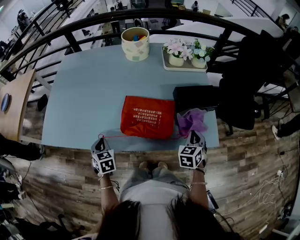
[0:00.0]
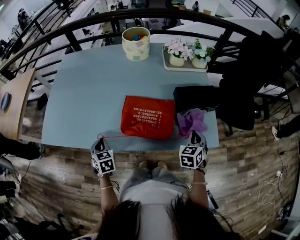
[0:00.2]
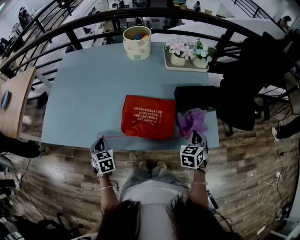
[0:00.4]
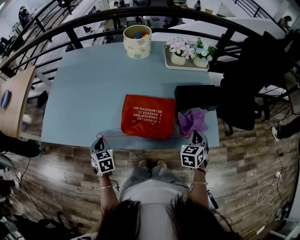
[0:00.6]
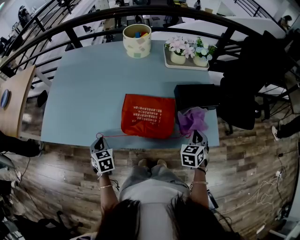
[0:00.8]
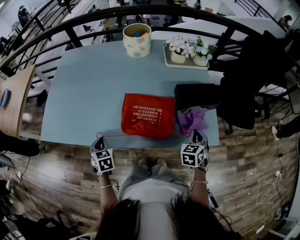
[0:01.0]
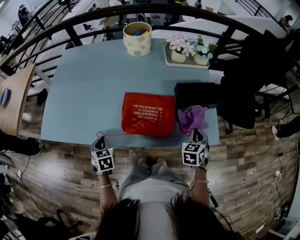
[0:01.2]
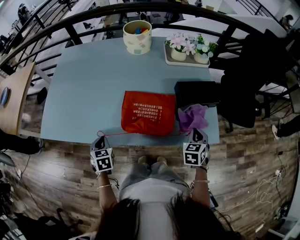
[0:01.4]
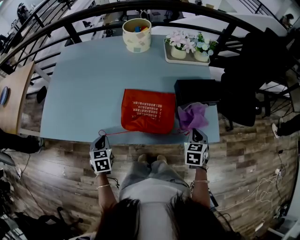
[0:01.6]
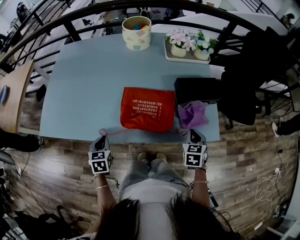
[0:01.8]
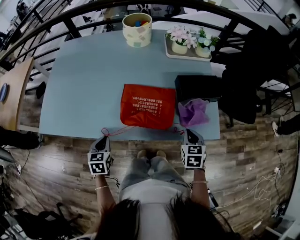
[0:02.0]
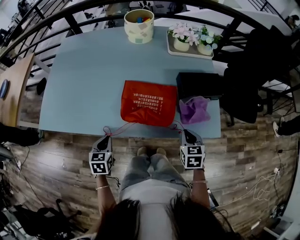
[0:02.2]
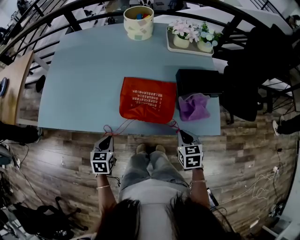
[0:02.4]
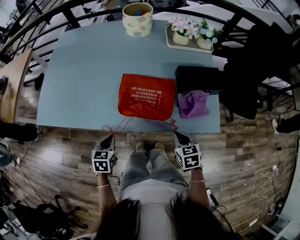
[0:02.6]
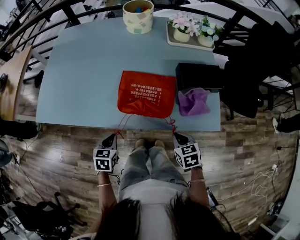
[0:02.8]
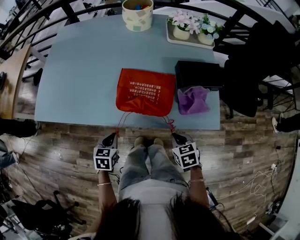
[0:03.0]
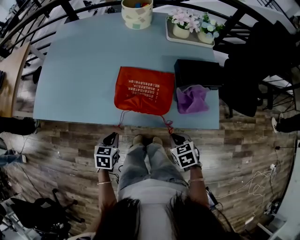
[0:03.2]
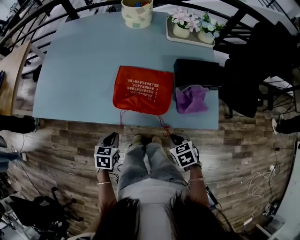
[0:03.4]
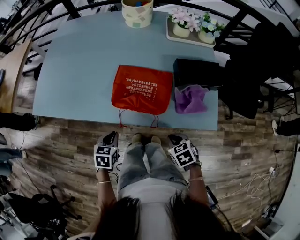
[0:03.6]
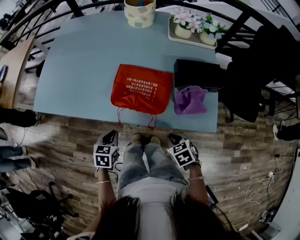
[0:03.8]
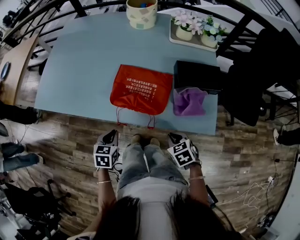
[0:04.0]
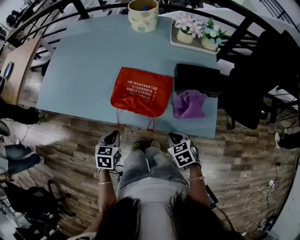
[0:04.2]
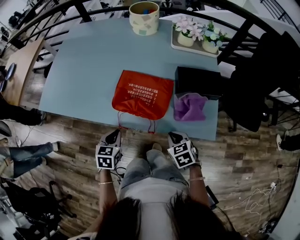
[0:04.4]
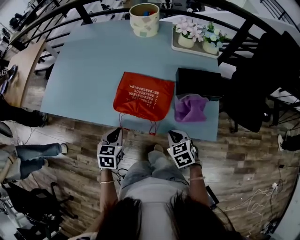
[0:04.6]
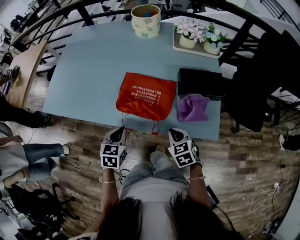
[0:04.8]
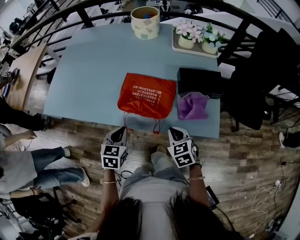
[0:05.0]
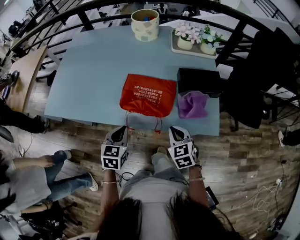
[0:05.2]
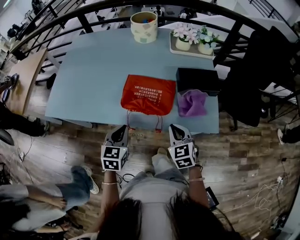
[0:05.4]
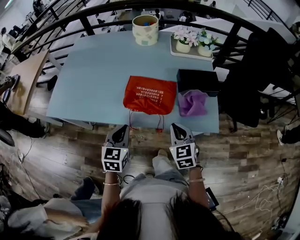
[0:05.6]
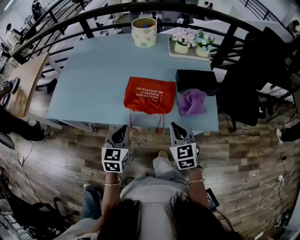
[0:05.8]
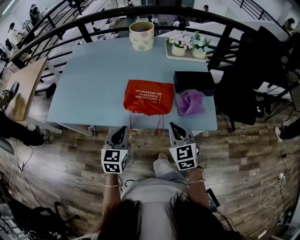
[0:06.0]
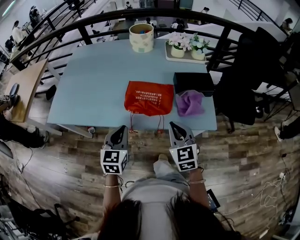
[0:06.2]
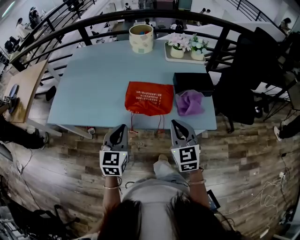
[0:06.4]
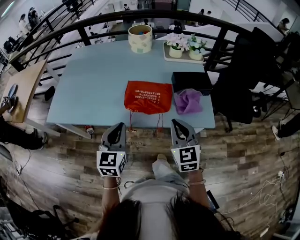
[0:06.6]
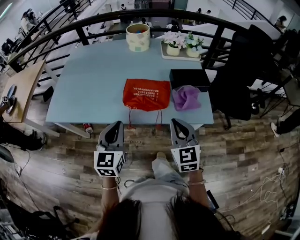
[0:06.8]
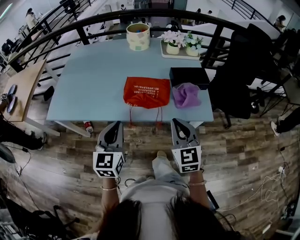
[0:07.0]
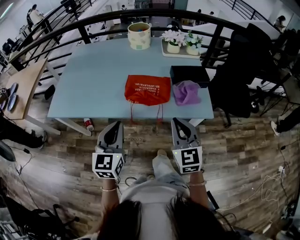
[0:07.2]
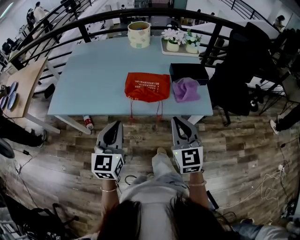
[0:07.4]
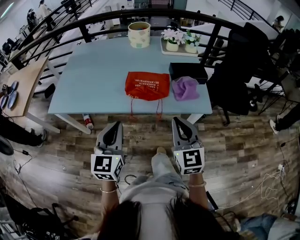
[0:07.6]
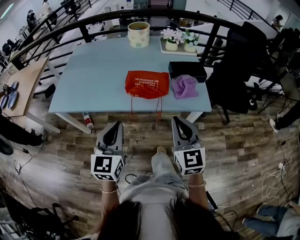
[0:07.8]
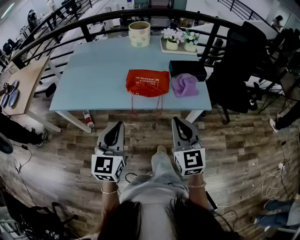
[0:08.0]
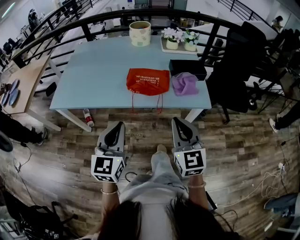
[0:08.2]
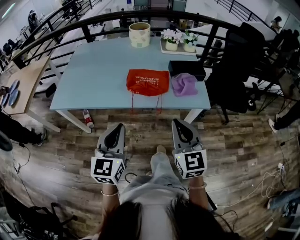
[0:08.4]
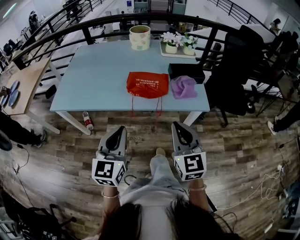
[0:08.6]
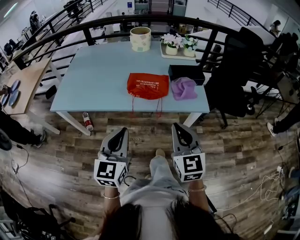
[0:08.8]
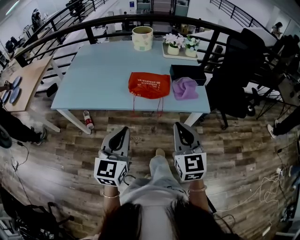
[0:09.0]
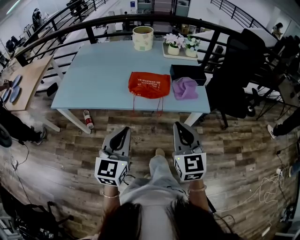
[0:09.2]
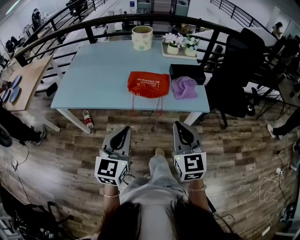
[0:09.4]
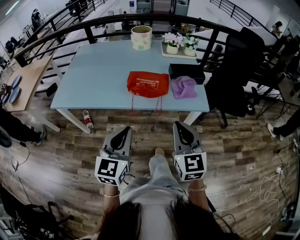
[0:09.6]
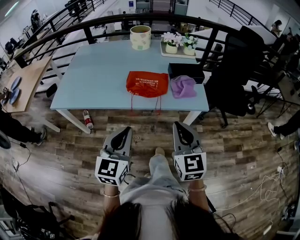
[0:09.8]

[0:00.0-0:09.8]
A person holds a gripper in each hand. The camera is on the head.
0:00.0 to 0:01.4: The grippers move only a little.
0:01.4 to 0:02.8: The left gripper travels to the right and backward by about 10 cm, while the right gripper shifts about 15 cm to the left, backward and downward, and rotates about 30 degrees.
0:02.8 to 0:04.2: The left gripper is displaced to the right by some 5 cm.
0:04.2 to 0:05.6: The grippers both shift upward by approximately 10 cm. The left gripper turns by approximately 20 degrees. The right gripper changes its angle by about 30 degrees.
0:05.6 to 0:07.0: The two grippers go about 15 cm upward and backward.
0:07.0 to 0:08.4: The grippers both shift backward by roughly 10 cm.
0:08.4 to 0:09.8: There are only small adjustments of the grippers.

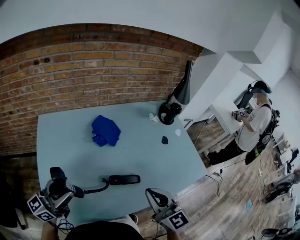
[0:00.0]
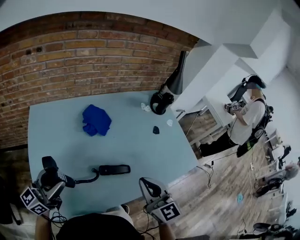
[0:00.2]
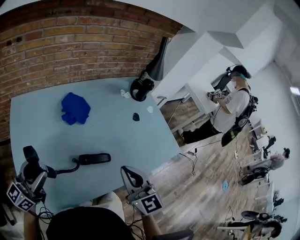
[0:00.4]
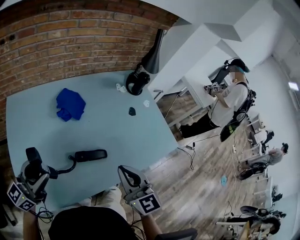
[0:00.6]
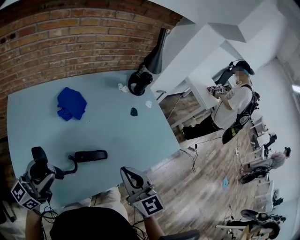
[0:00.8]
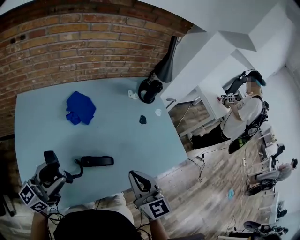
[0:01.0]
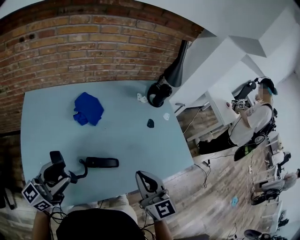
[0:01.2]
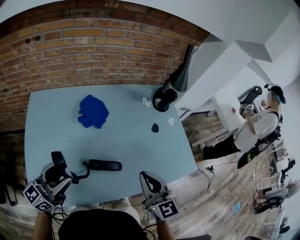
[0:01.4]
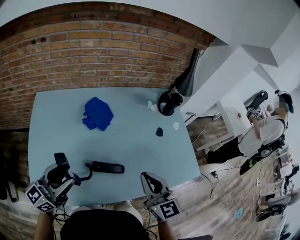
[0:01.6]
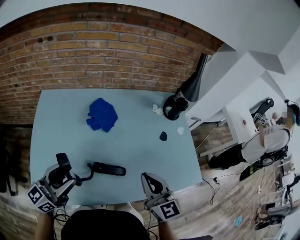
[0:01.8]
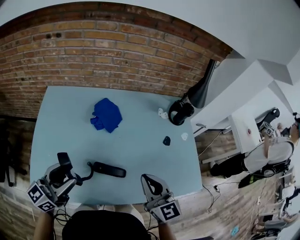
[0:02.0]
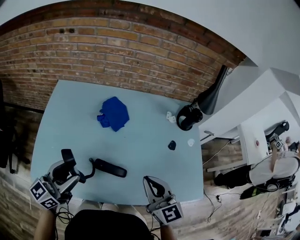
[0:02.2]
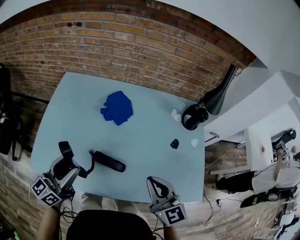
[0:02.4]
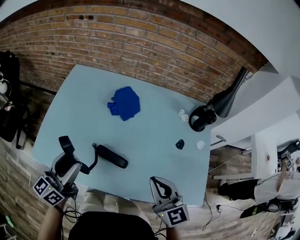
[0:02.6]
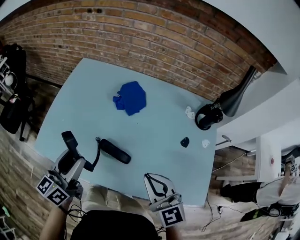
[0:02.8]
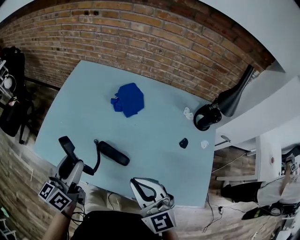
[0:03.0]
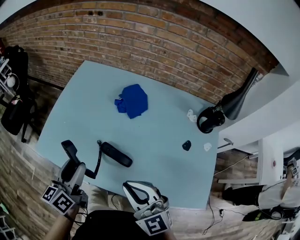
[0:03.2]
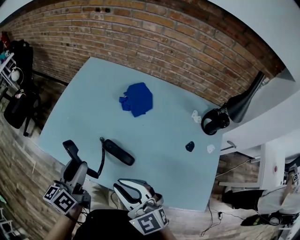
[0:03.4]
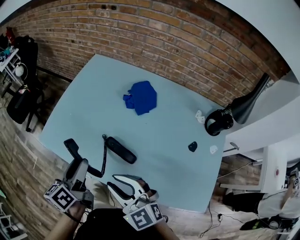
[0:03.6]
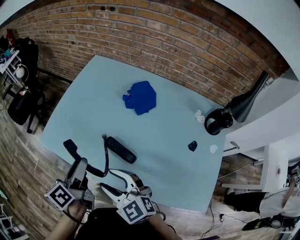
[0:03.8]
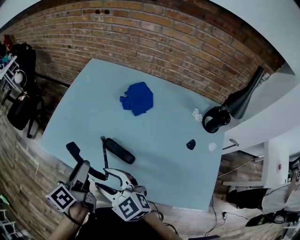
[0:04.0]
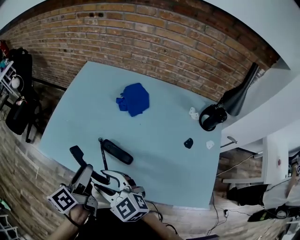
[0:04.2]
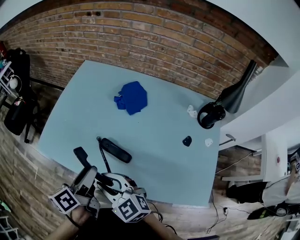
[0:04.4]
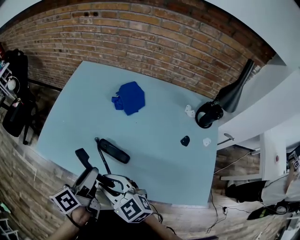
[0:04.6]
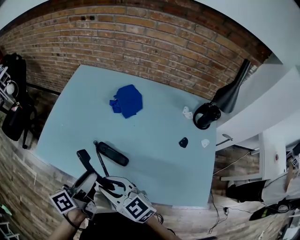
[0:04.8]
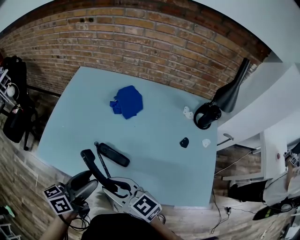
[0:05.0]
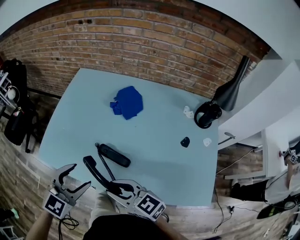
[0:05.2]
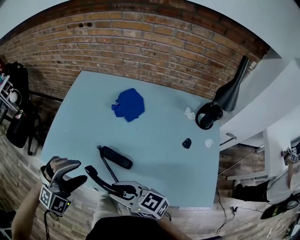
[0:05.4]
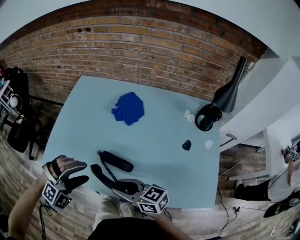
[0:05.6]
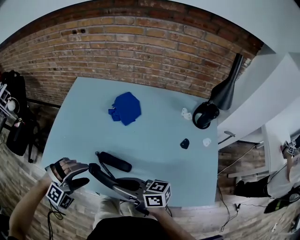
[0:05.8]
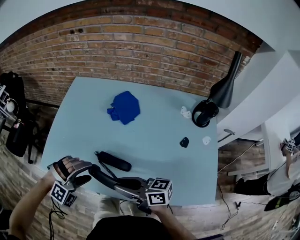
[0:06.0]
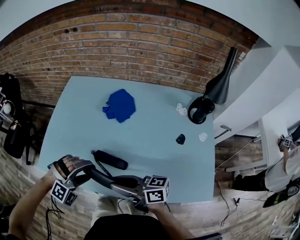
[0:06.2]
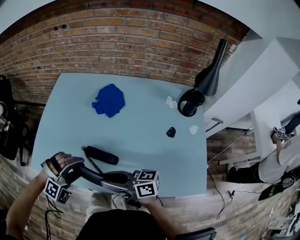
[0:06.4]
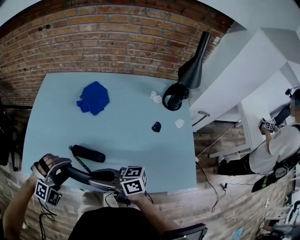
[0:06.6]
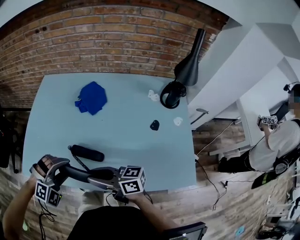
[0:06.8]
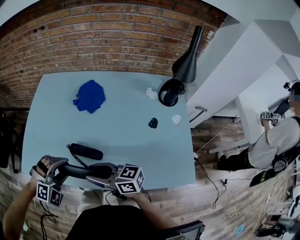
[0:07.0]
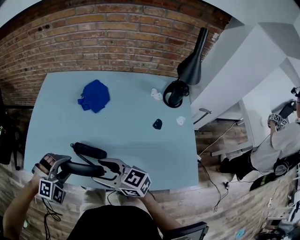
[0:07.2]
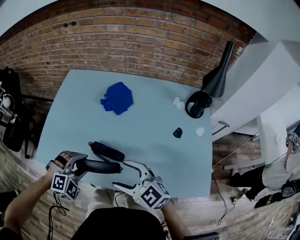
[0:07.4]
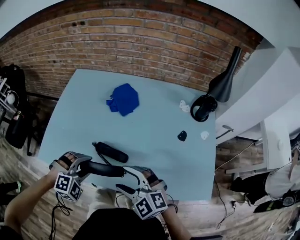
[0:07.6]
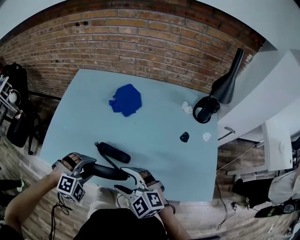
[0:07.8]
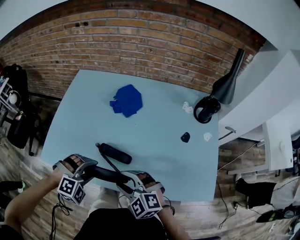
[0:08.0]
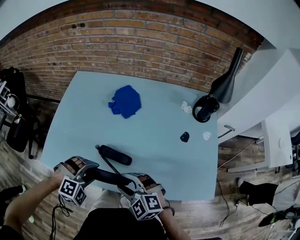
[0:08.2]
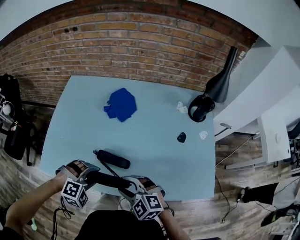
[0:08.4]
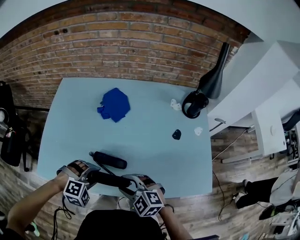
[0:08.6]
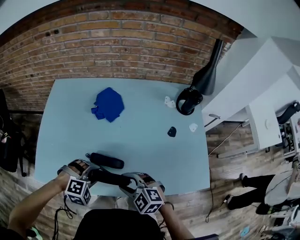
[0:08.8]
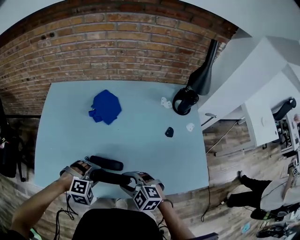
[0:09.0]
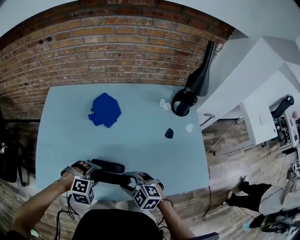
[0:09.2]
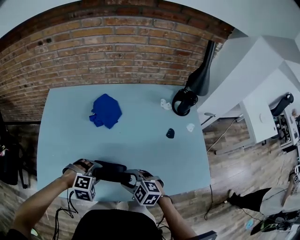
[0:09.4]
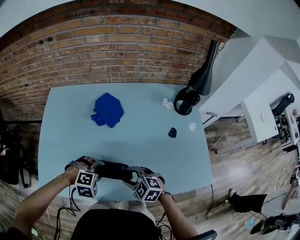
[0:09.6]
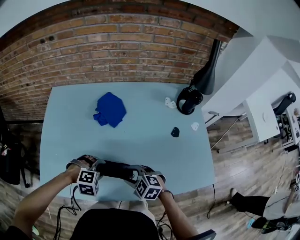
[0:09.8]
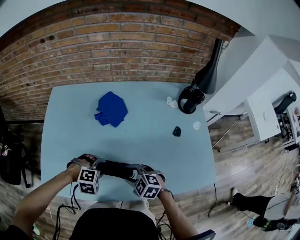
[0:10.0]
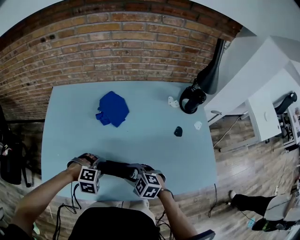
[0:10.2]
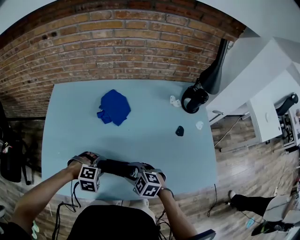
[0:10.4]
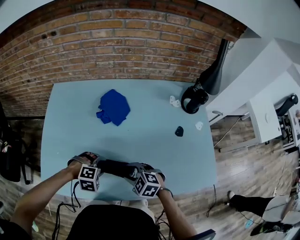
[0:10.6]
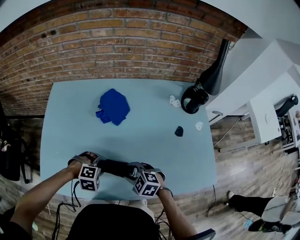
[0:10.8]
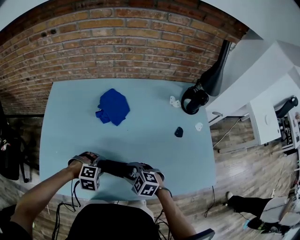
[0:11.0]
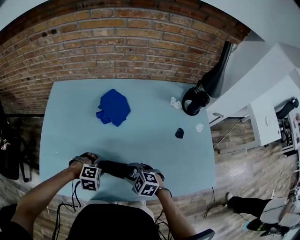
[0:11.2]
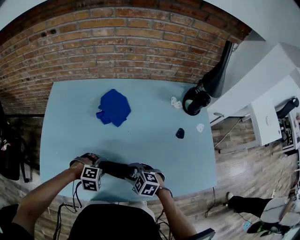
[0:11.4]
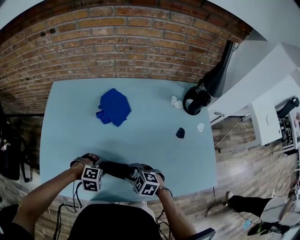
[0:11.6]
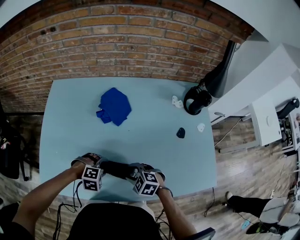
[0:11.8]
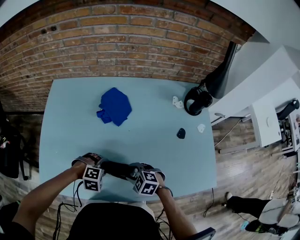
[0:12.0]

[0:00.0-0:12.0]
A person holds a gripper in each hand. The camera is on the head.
0:00.0 to 0:01.6: The left gripper shifts approximately 10 cm to the right. Meanwhile the right gripper heads forward and to the right, covering some 10 cm.
0:01.6 to 0:03.0: The right gripper changes its angle by some 40 degrees. Meanwhile the left gripper moves approximately 10 cm, and swivels about 50 degrees.
0:03.0 to 0:04.4: The left gripper travels backward by some 5 cm, and swivels approximately 30 degrees, while the right gripper moves to the left and downward, some 15 cm, swivels roughly 20 degrees, and opens its fingers.
0:04.4 to 0:06.0: The right gripper is displaced to the right by approximately 10 cm, and rolls clockwise, seen from behind, by approximately 50 degrees; the left gripper moves downward, roughly 5 cm, and twists approximately 140 degrees clockwise, seen from behind.
0:06.0 to 0:07.6: The right gripper twists approximately 70 degrees counterclockwise, seen from behind, and opens up. Meanwhile the left gripper changes its angle by some 20 degrees.
0:07.6 to 0:09.0: The right gripper heads downward, covering approximately 10 cm, changes its angle by roughly 20 degrees, and closes its fingers, while the left gripper ends up some 5 cm from where it was, and changes its angle by approximately 20 degrees.
0:09.0 to 0:10.4: Both grippers travel together forward, some 5 cm.
0:10.4 to 0:12.0: The grippers move only a little.

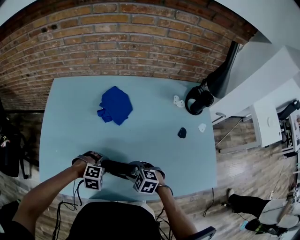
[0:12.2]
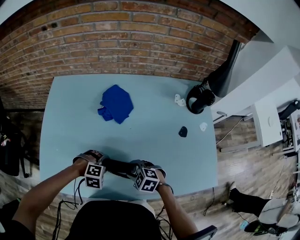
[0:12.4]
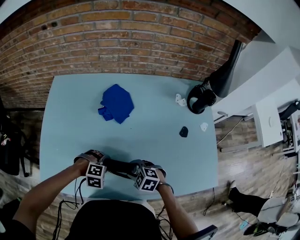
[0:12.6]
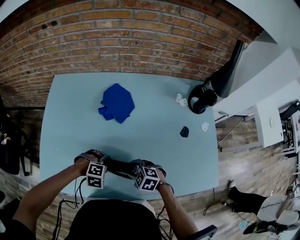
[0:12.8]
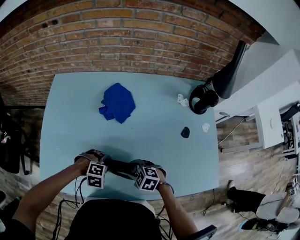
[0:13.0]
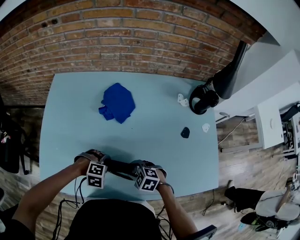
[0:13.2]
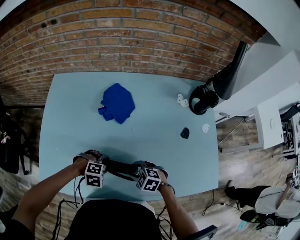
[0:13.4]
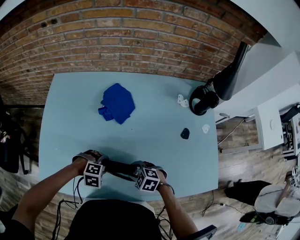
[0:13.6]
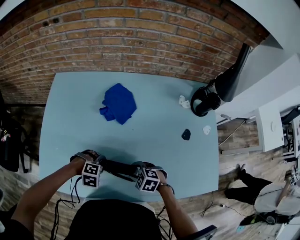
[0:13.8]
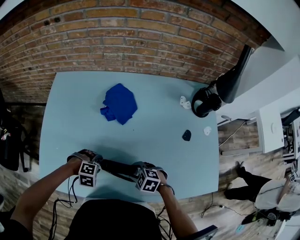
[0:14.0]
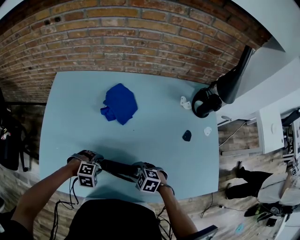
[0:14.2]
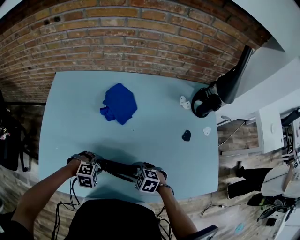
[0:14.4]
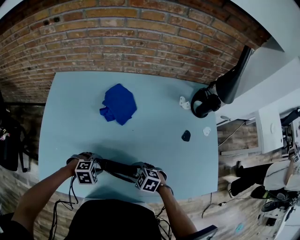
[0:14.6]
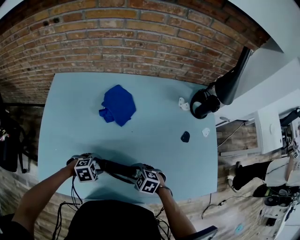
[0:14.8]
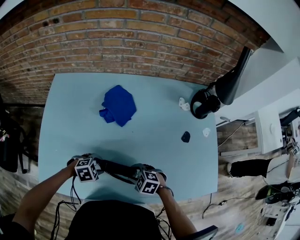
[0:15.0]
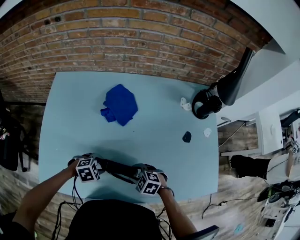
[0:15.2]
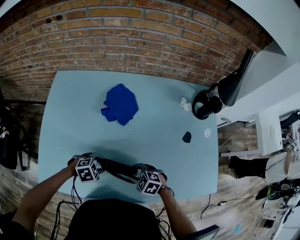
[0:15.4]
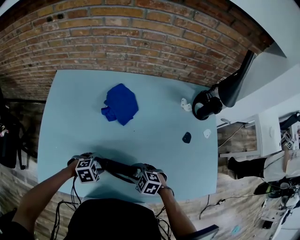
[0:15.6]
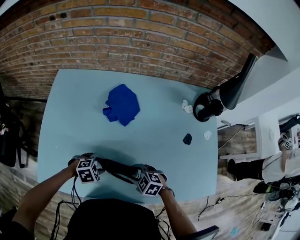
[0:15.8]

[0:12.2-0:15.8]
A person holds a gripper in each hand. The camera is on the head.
0:12.2 to 0:14.0: The grippers stay close to where they were, moving slightly.
0:14.0 to 0:15.8: The left gripper rotates some 30 degrees.
